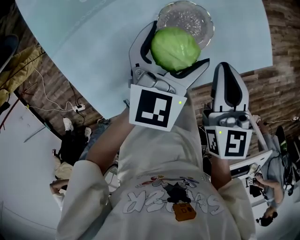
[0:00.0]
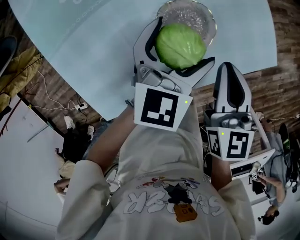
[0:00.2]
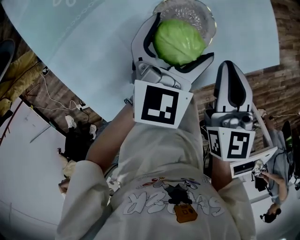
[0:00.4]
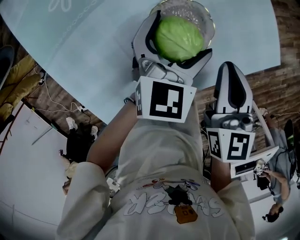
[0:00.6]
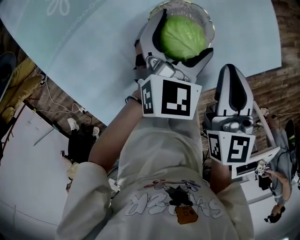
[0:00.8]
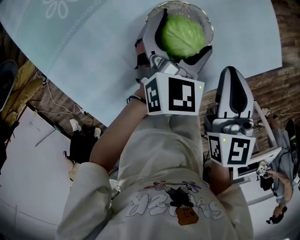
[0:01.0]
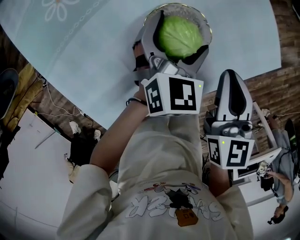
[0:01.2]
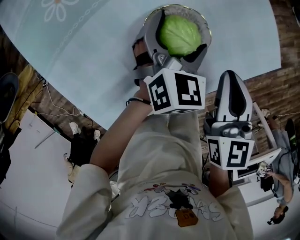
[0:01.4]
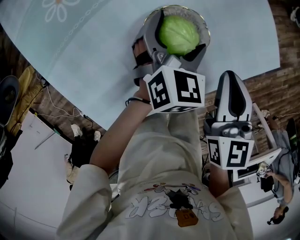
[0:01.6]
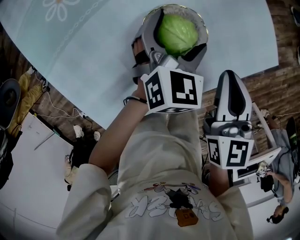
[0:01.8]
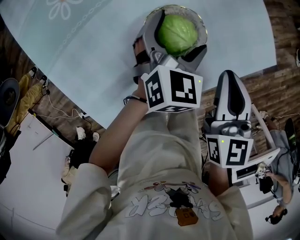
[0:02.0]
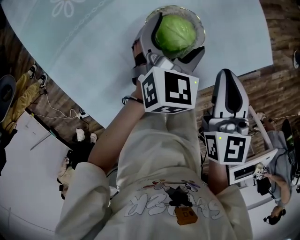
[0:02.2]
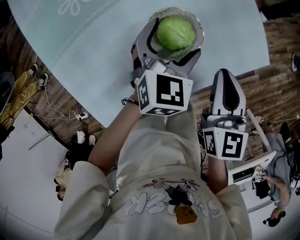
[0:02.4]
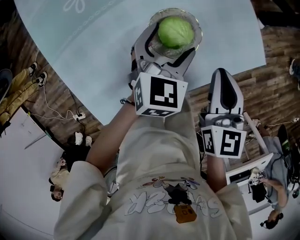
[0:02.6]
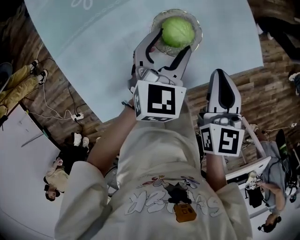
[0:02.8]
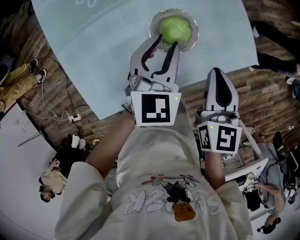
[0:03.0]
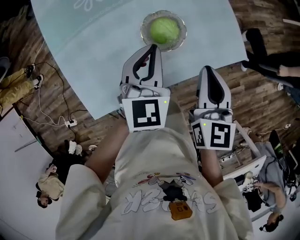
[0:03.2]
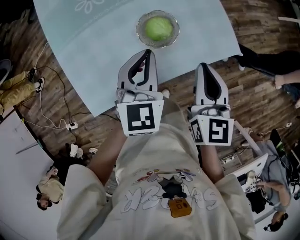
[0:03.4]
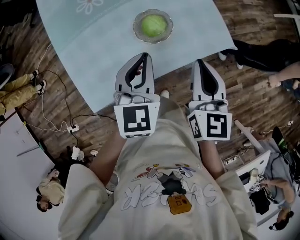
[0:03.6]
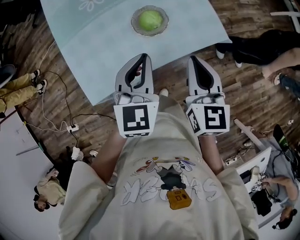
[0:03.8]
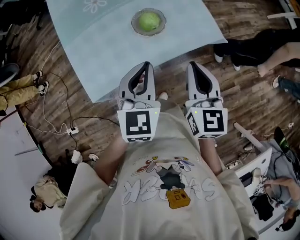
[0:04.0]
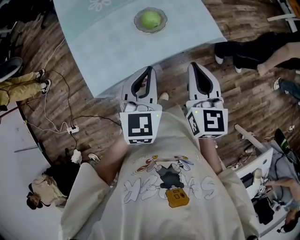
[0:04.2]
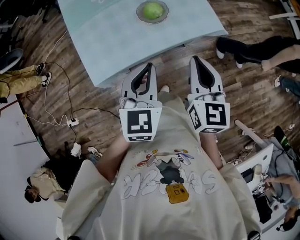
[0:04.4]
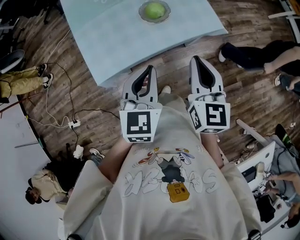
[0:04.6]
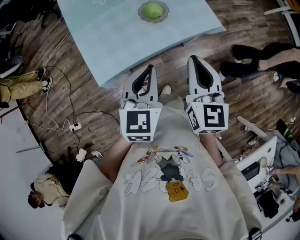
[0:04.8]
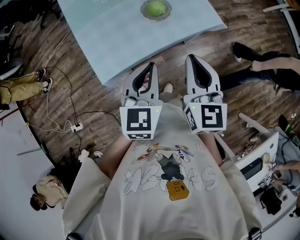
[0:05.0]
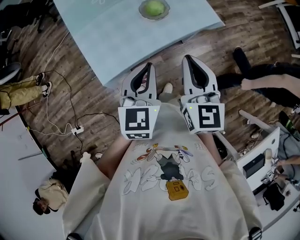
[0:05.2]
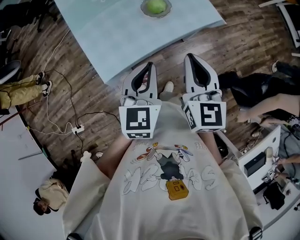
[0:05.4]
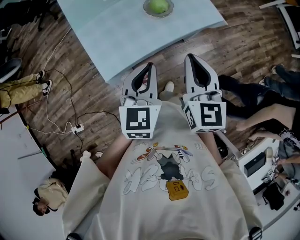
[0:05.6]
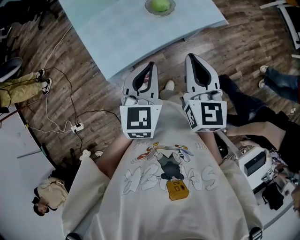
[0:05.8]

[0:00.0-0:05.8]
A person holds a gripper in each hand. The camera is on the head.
0:00.0 to 0:01.4: The right gripper moves approximately 5 cm; the left gripper goes some 10 cm downward, and swivels roughly 30 degrees.
0:01.4 to 0:02.8: The left gripper shifts approximately 10 cm upward and backward, and closes; the right gripper shifts about 5 cm upward.
0:02.8 to 0:04.4: Both grippers move backward and upward, approximately 30 cm. The left gripper closes up.
0:04.4 to 0:05.8: Both grippers travel together to the left, about 5 cm.

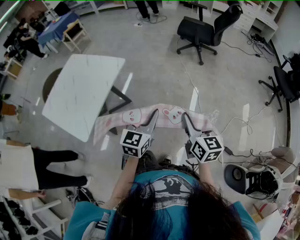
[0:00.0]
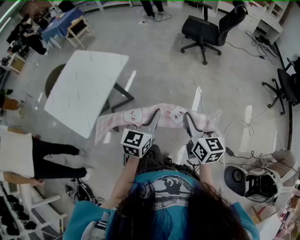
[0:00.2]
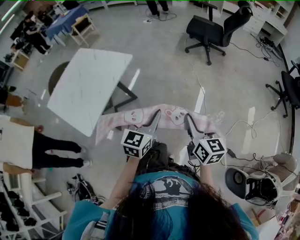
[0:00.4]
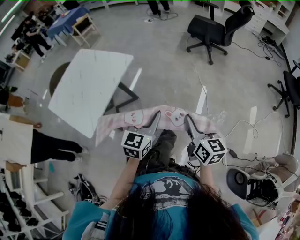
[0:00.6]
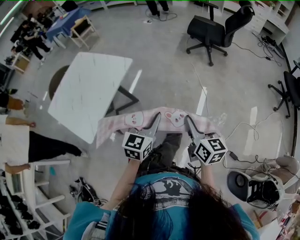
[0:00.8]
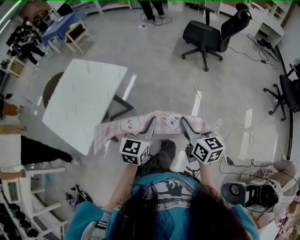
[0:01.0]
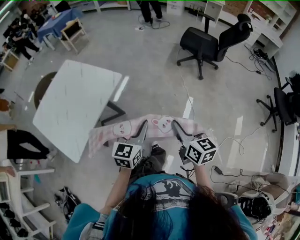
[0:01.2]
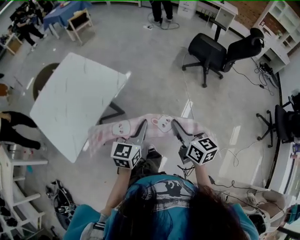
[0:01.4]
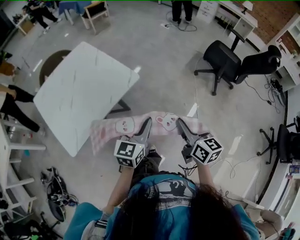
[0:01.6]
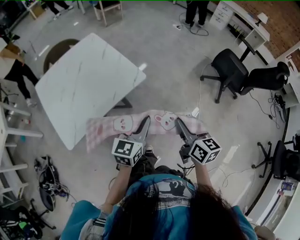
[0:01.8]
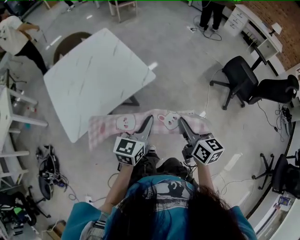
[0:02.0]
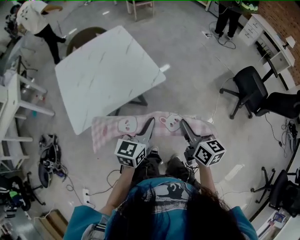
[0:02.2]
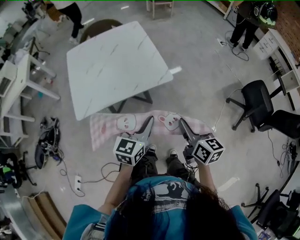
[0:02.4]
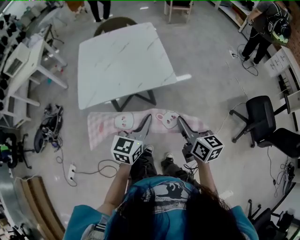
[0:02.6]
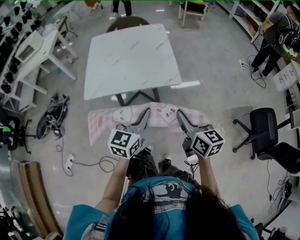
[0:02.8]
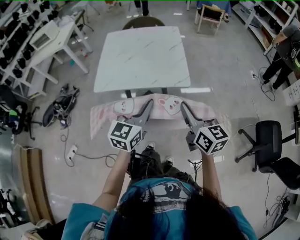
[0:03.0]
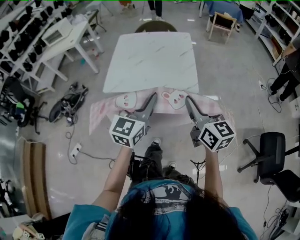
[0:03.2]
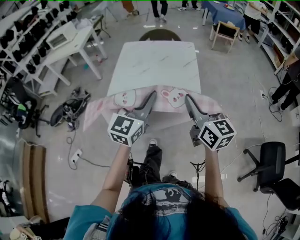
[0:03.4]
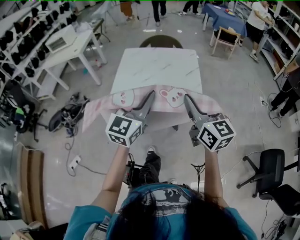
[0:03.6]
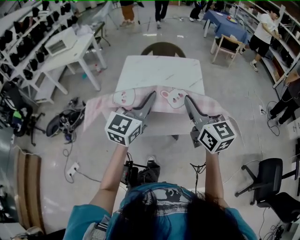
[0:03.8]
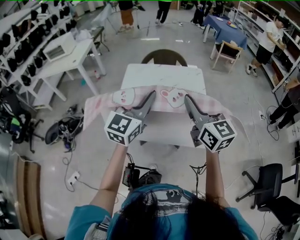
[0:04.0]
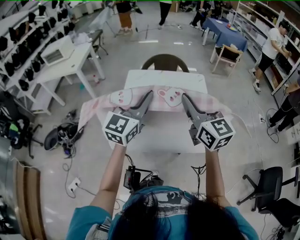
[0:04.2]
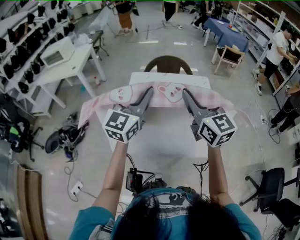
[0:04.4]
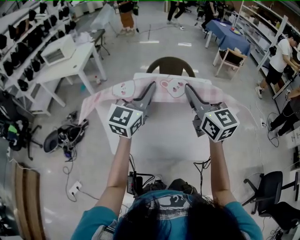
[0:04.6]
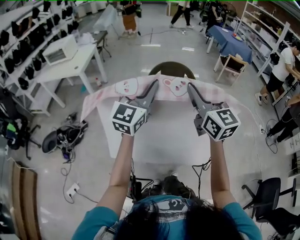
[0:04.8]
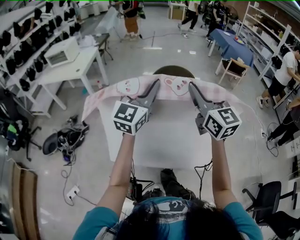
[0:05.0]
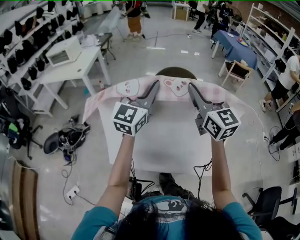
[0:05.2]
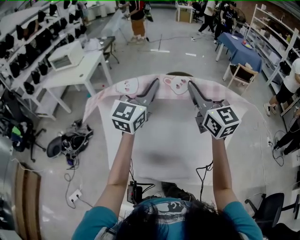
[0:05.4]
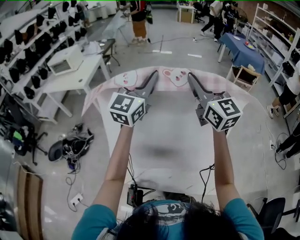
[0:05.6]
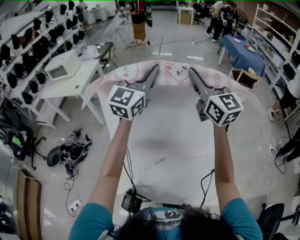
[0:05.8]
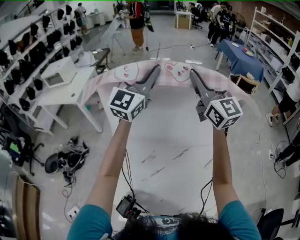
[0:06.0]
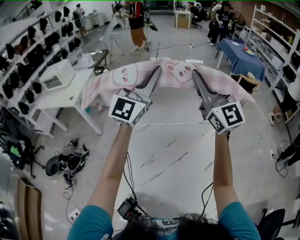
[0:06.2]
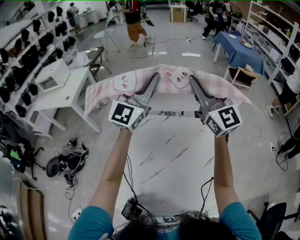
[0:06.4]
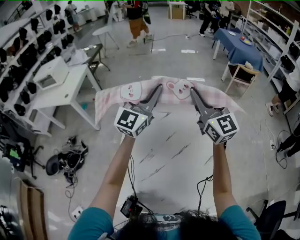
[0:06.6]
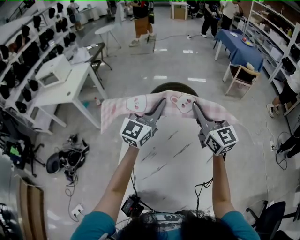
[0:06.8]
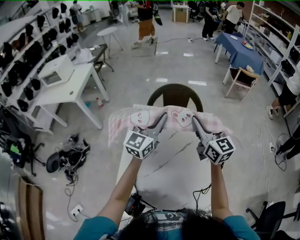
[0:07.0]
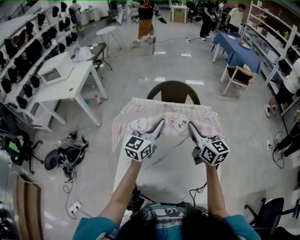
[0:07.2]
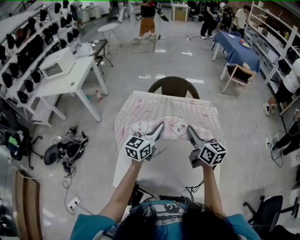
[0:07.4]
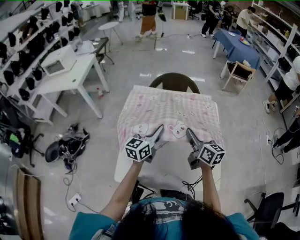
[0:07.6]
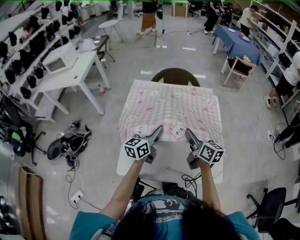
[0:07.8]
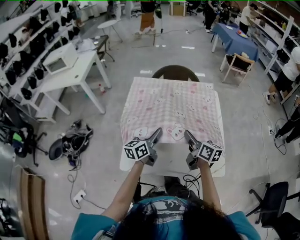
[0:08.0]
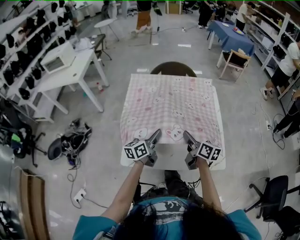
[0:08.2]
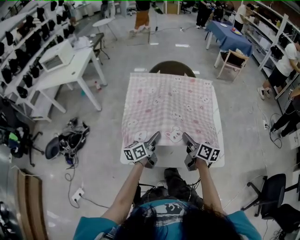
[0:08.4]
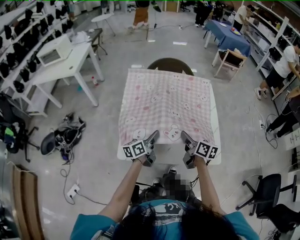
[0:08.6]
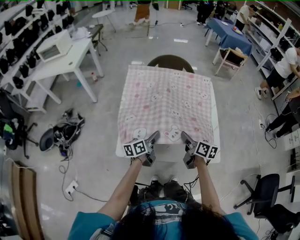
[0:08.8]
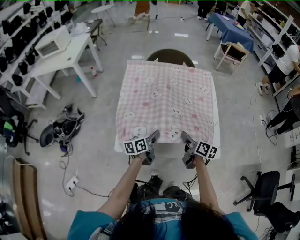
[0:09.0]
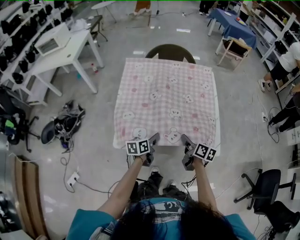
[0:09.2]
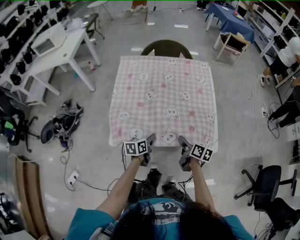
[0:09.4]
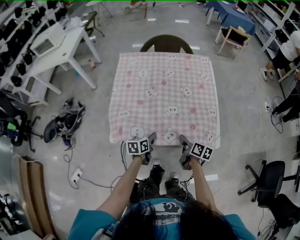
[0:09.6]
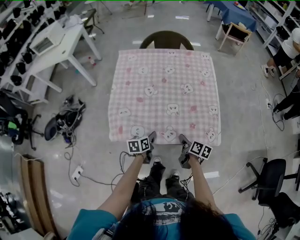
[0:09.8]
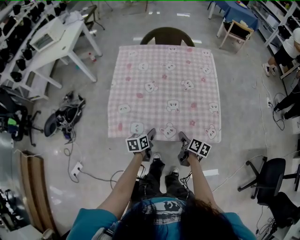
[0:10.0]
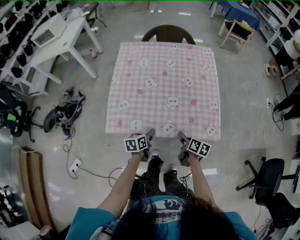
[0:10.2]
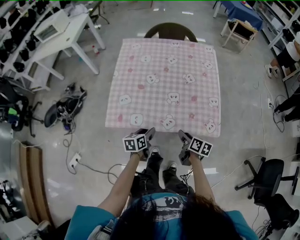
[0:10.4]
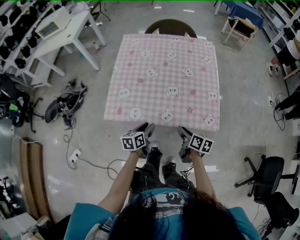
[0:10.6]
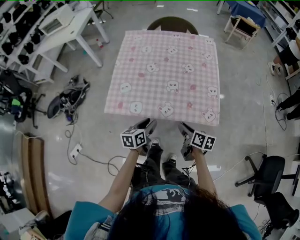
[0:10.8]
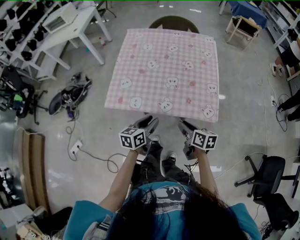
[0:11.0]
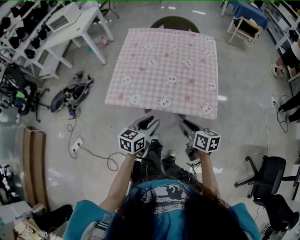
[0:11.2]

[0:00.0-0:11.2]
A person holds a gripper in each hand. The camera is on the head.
0:00.0 to 0:01.6: The left gripper moves forward and to the left, approximately 25 cm, and changes its angle by some 20 degrees. Meanwhile the right gripper goes some 25 cm forward, and swivels about 20 degrees.
0:01.6 to 0:03.2: The right gripper ends up roughly 20 cm from where it was, and turns by some 50 degrees; the left gripper moves upward, about 15 cm, and swivels roughly 50 degrees.
0:03.2 to 0:04.8: The pair of grippers is taken forward and to the left, some 40 cm. The right gripper goes roughly 15 cm upward.
0:04.8 to 0:06.4: Both grippers travel together forward, about 30 cm. The right gripper rotates approximately 20 degrees.
0:06.4 to 0:08.0: The two grippers go approximately 50 cm downward and backward. The left gripper rotates around the line of its fingers by some 60 degrees, counterclockwise from behind; the right gripper rotates around the line of its fingers by some 60 degrees, clockwise from behind.
0:08.0 to 0:09.6: Both grippers move downward and backward, roughly 25 cm. The left gripper angles its fingers downward, by approximately 30 degrees. The right gripper turns by about 30 degrees.
0:09.6 to 0:11.2: The right gripper heads backward and upward, covering about 15 cm, and turns by approximately 30 degrees, while the left gripper goes about 20 cm backward, upward and to the right, and turns by some 20 degrees.

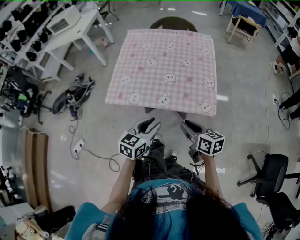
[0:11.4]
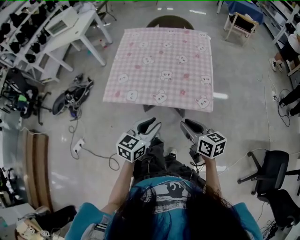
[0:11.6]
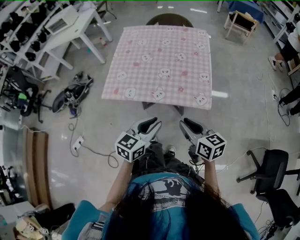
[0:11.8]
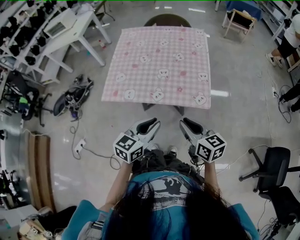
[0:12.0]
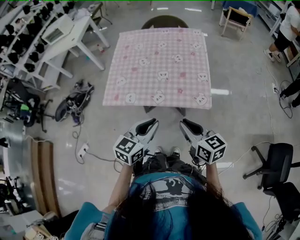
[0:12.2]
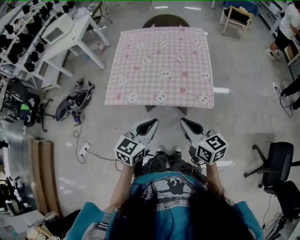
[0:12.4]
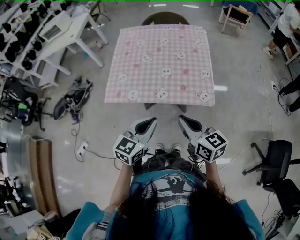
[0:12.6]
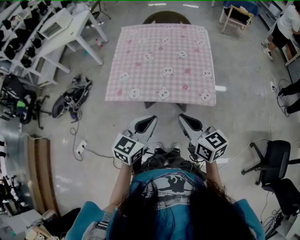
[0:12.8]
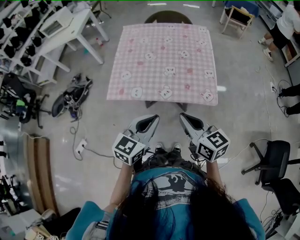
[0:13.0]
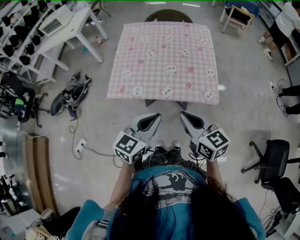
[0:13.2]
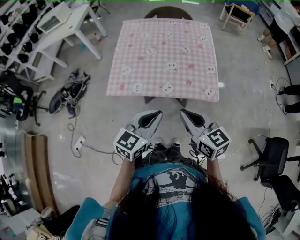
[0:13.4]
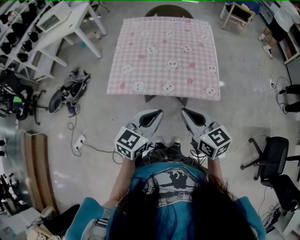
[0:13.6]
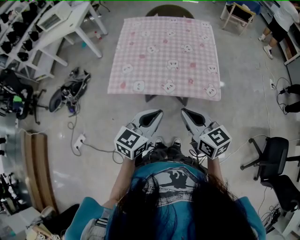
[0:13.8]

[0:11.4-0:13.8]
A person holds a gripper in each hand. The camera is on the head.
0:11.4 to 0:12.6: The left gripper heads upward, covering roughly 5 cm, and closes. Meanwhile the right gripper moves upward, approximately 10 cm, and closes.
0:12.6 to 0:13.8: The grippers stay close to where they were, moving slightly.

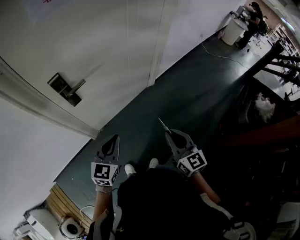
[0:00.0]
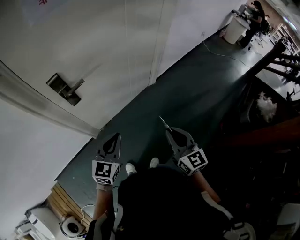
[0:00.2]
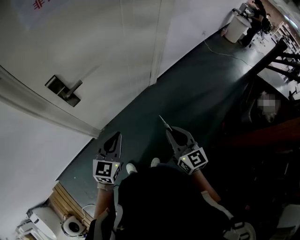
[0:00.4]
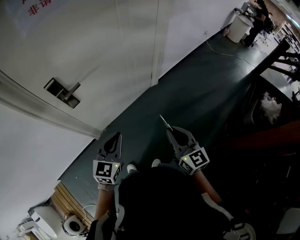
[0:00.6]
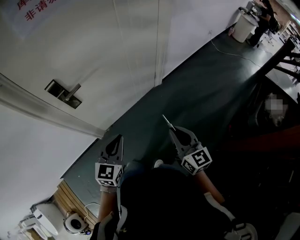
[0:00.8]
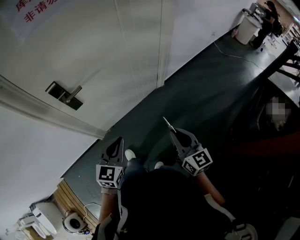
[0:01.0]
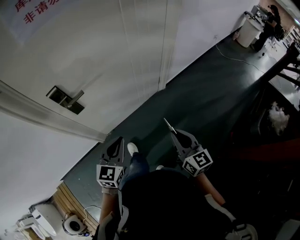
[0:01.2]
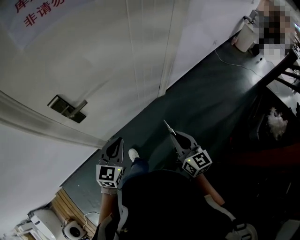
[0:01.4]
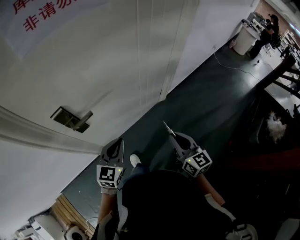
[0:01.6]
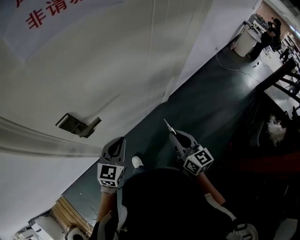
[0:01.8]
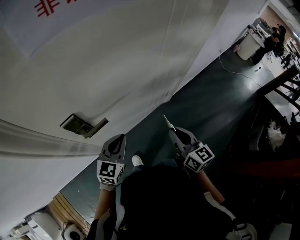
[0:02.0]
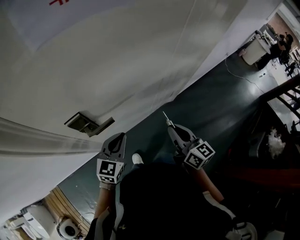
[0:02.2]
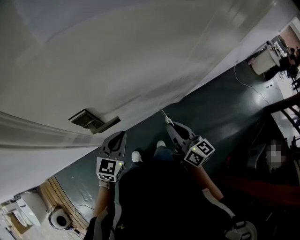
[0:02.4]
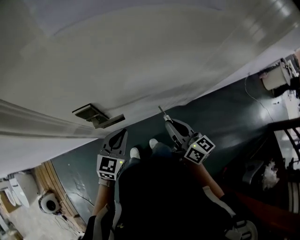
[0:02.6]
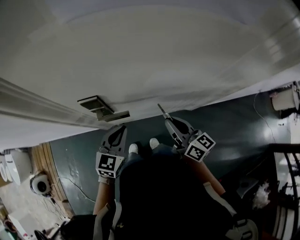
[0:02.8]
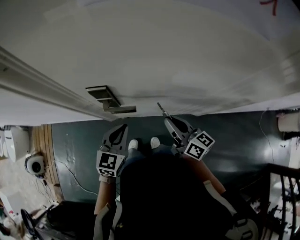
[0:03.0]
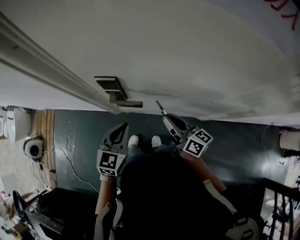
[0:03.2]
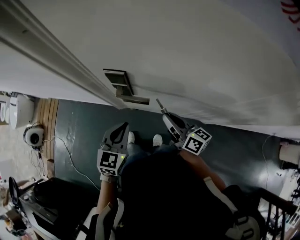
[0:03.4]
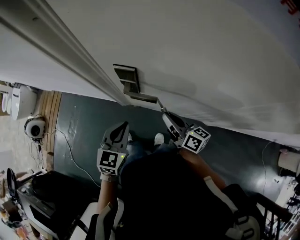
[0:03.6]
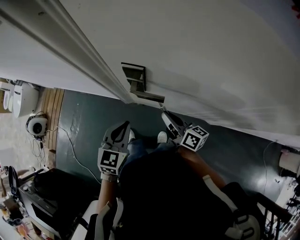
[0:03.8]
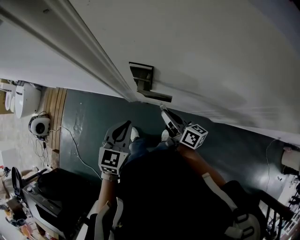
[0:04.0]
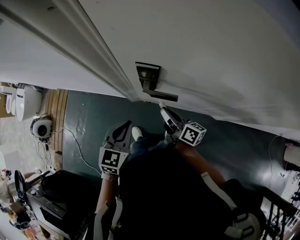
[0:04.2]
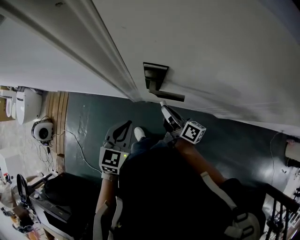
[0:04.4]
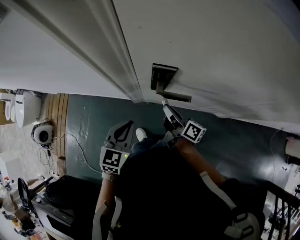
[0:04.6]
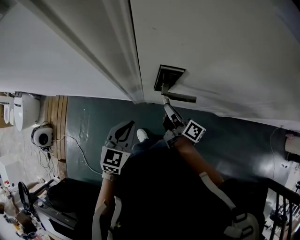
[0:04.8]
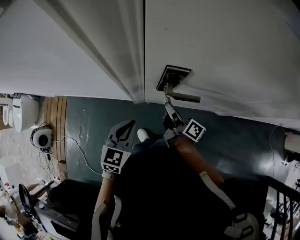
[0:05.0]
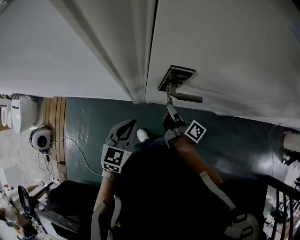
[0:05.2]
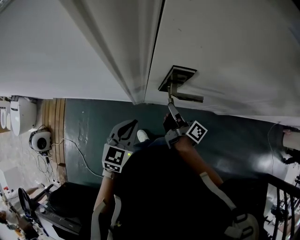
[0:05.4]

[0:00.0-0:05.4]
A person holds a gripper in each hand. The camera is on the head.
0:00.0 to 0:01.4: Both grippers travel together forward, roughly 15 cm.
0:01.4 to 0:02.8: The right gripper changes place by some 35 cm, and swivels about 40 degrees. The left gripper changes place by about 25 cm, and rotates approximately 20 degrees.
0:02.8 to 0:04.0: The right gripper moves roughly 20 cm, and changes its angle by some 30 degrees; the left gripper ends up about 15 cm from where it was, and turns by approximately 30 degrees.
0:04.0 to 0:05.4: The two grippers go roughly 10 cm to the left. The right gripper swivels some 30 degrees.
